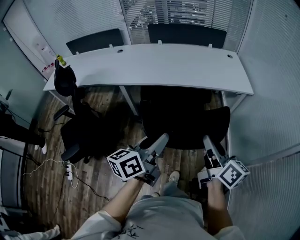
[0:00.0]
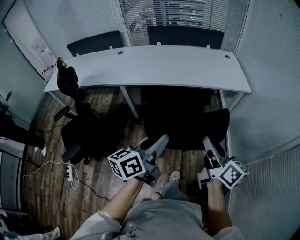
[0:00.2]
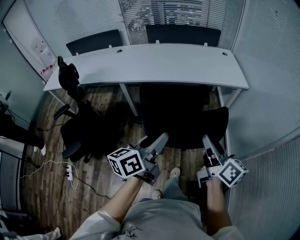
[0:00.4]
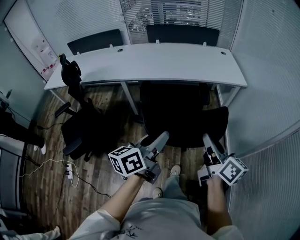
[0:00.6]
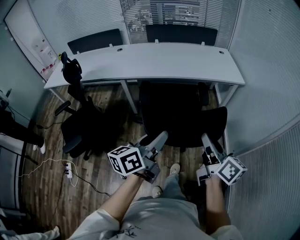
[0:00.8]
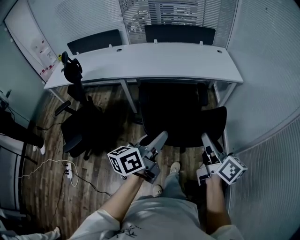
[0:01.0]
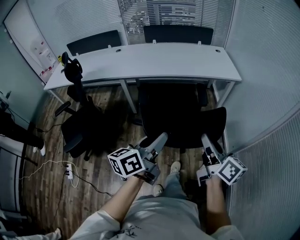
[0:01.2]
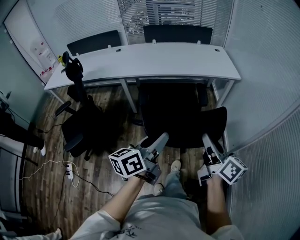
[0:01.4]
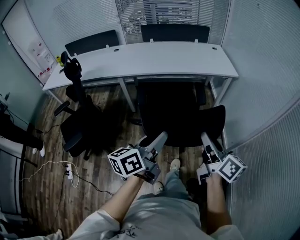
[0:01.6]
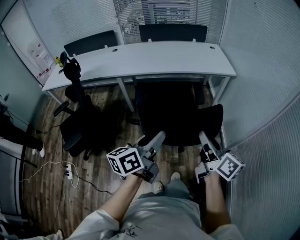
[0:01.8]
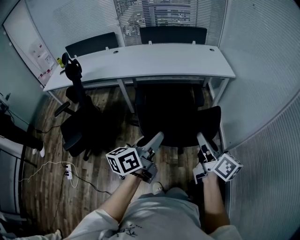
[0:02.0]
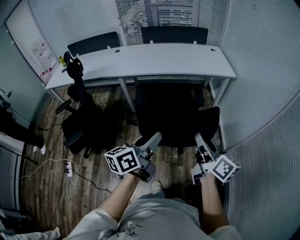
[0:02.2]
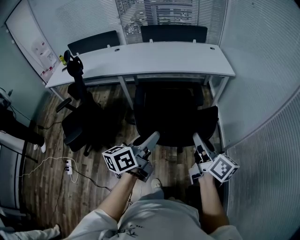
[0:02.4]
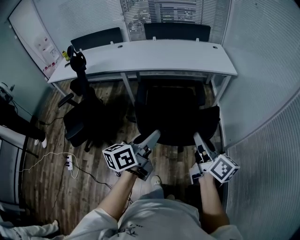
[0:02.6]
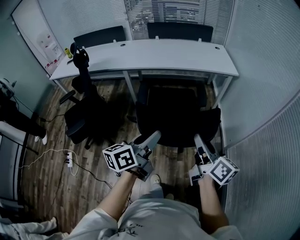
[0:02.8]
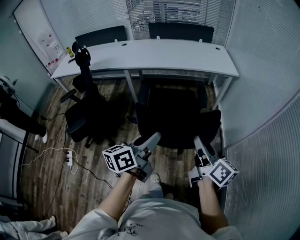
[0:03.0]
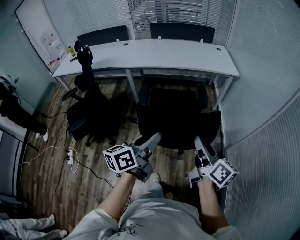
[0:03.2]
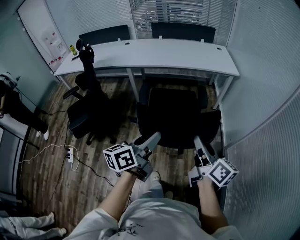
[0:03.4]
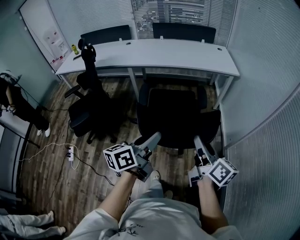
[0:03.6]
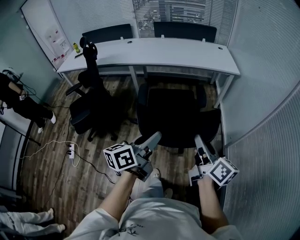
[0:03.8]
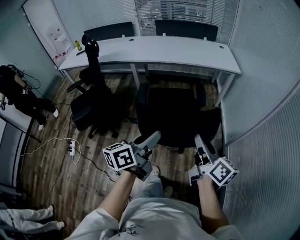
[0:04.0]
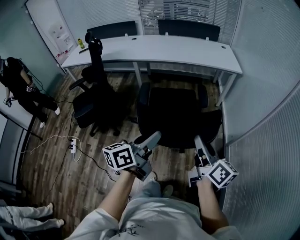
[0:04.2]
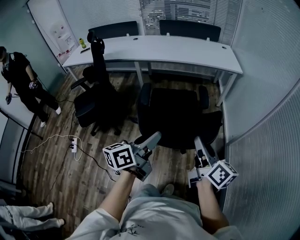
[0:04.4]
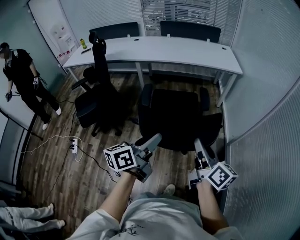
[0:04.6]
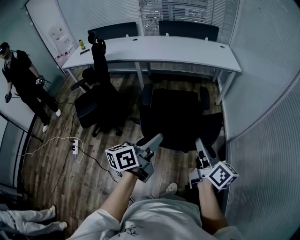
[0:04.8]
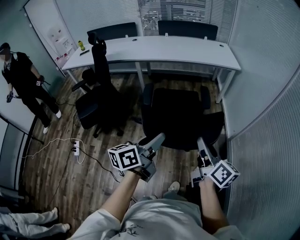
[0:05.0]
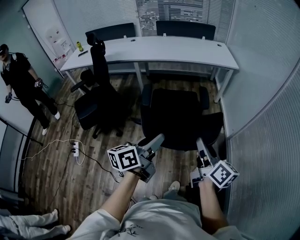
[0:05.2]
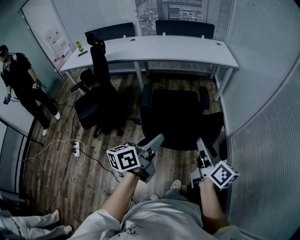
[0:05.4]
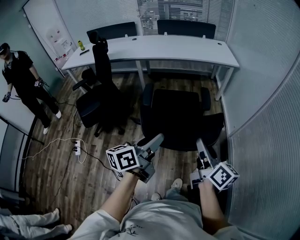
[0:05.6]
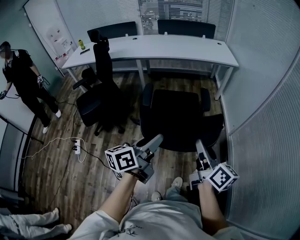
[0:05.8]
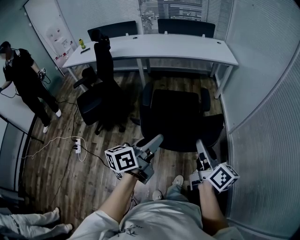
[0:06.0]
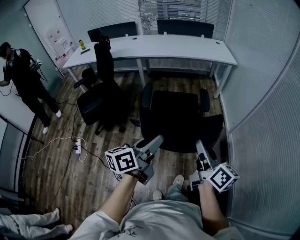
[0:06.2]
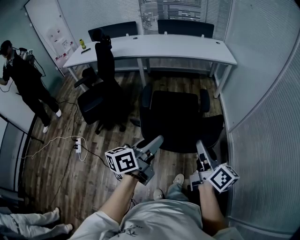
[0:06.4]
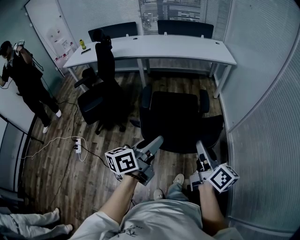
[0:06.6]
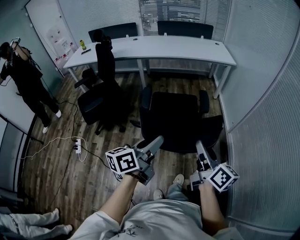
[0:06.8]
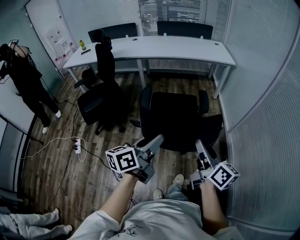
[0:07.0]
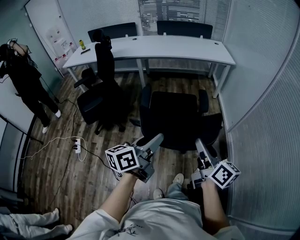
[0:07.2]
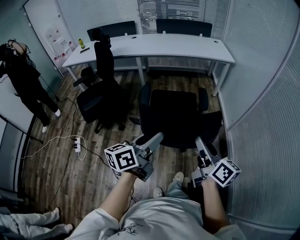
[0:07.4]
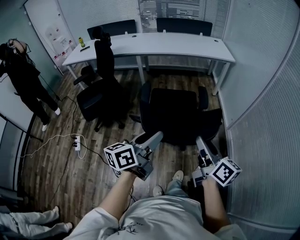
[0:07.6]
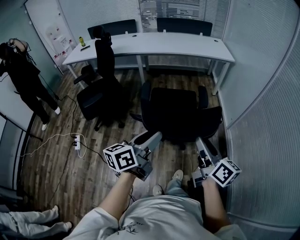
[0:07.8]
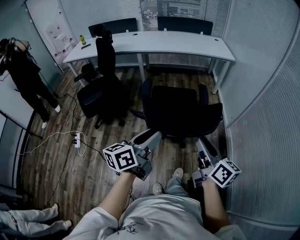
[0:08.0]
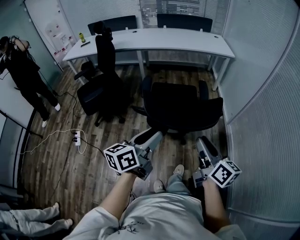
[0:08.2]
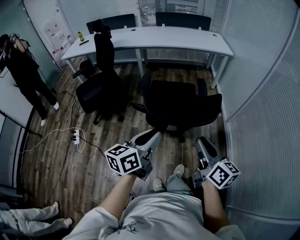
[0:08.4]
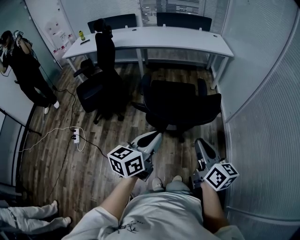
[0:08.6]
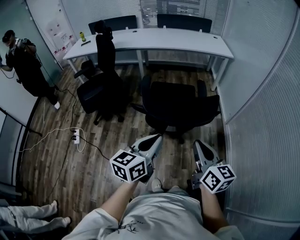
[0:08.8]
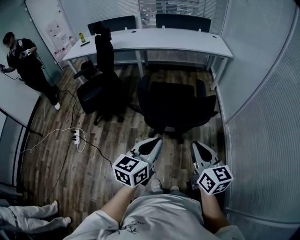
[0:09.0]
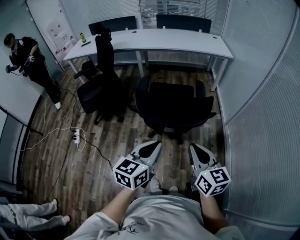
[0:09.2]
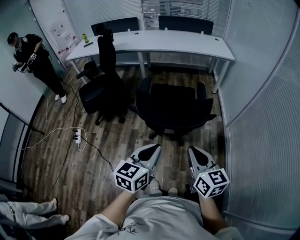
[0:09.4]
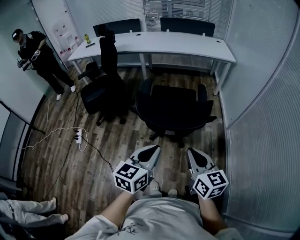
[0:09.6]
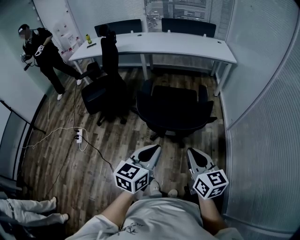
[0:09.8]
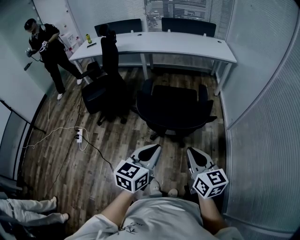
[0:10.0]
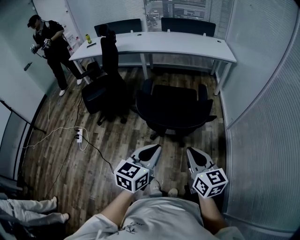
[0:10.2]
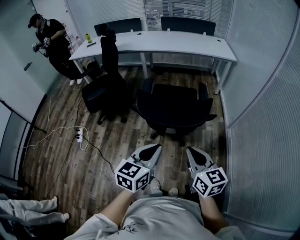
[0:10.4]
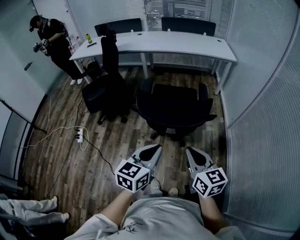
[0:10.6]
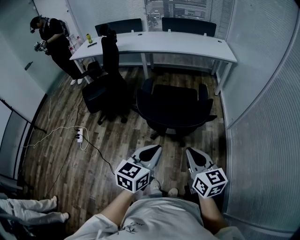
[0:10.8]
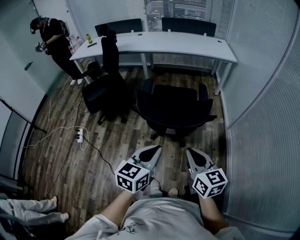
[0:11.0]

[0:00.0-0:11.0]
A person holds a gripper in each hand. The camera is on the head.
0:00.0 to 0:01.6: Both grippers travel together backward, some 20 cm.
0:01.6 to 0:03.2: The grippers both shift backward by roughly 10 cm.
0:03.2 to 0:04.8: Both grippers move backward, about 15 cm.
0:04.8 to 0:06.2: Both grippers travel together backward, some 10 cm.
0:06.2 to 0:07.8: Both grippers travel together backward, some 5 cm.
0:07.8 to 0:09.4: The left gripper shifts roughly 10 cm backward and to the right, swivels approximately 30 degrees, and closes its fingers, while the right gripper is displaced backward by approximately 10 cm, changes its angle by roughly 30 degrees, and closes.
0:09.4 to 0:11.0: The two grippers keep their place.

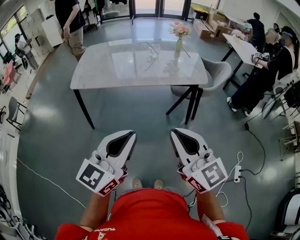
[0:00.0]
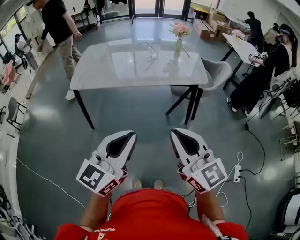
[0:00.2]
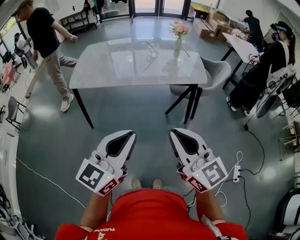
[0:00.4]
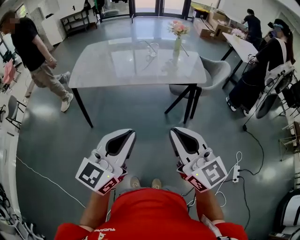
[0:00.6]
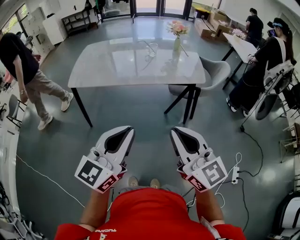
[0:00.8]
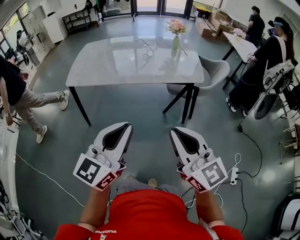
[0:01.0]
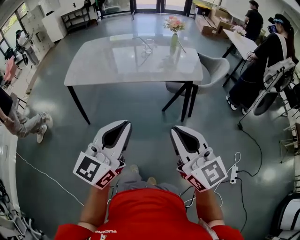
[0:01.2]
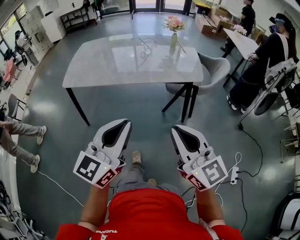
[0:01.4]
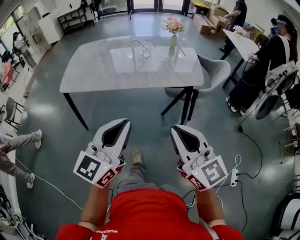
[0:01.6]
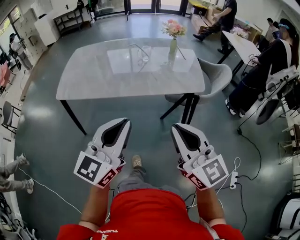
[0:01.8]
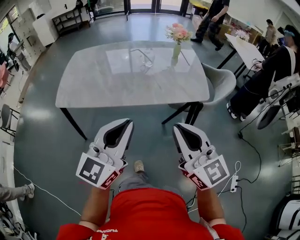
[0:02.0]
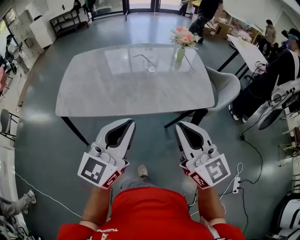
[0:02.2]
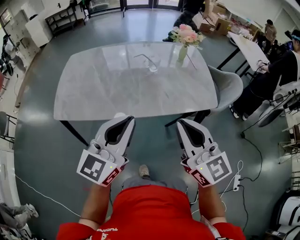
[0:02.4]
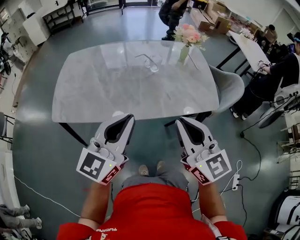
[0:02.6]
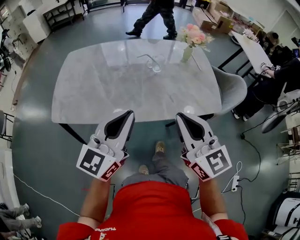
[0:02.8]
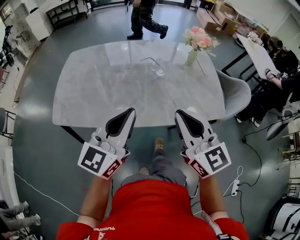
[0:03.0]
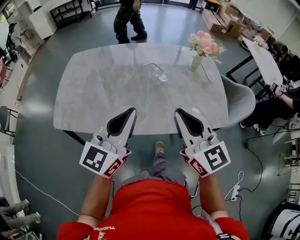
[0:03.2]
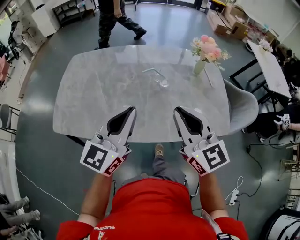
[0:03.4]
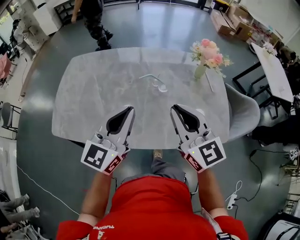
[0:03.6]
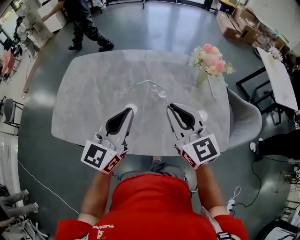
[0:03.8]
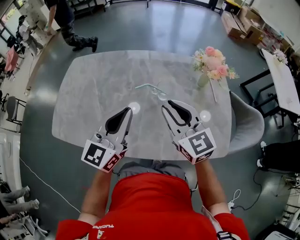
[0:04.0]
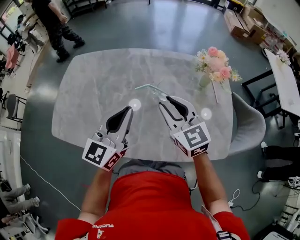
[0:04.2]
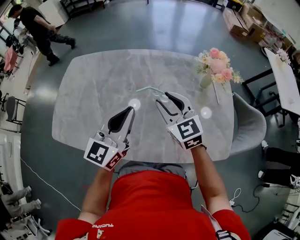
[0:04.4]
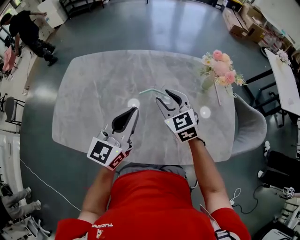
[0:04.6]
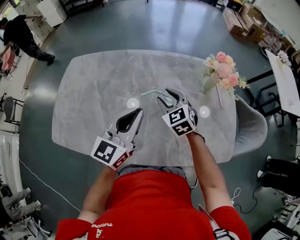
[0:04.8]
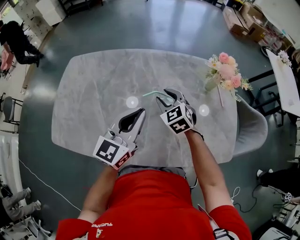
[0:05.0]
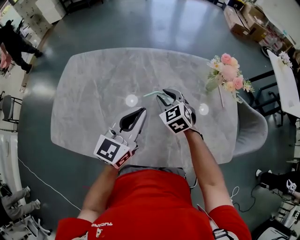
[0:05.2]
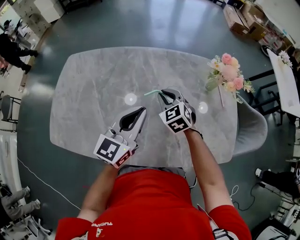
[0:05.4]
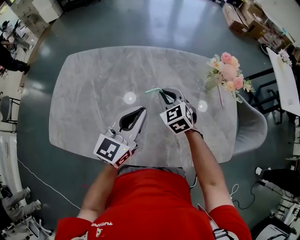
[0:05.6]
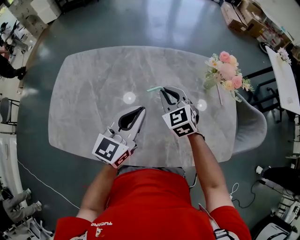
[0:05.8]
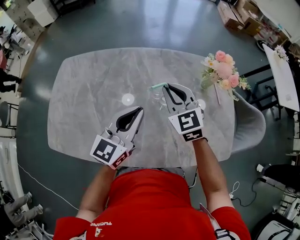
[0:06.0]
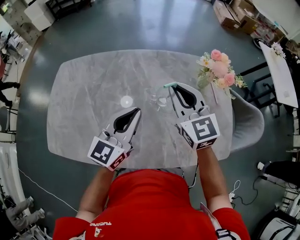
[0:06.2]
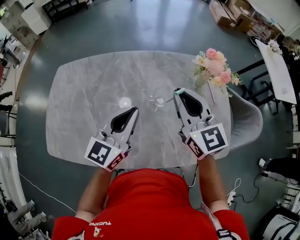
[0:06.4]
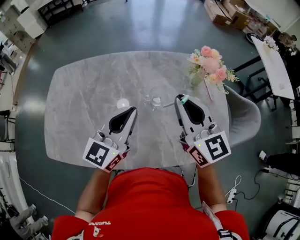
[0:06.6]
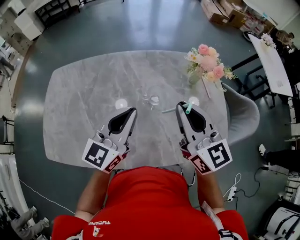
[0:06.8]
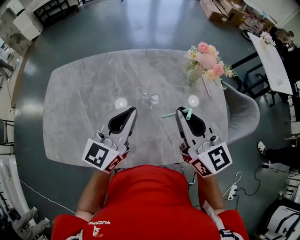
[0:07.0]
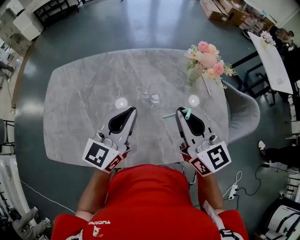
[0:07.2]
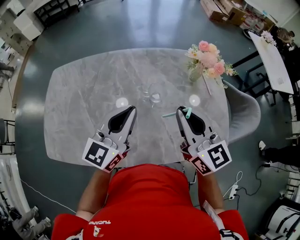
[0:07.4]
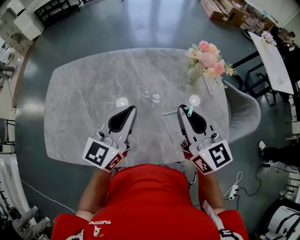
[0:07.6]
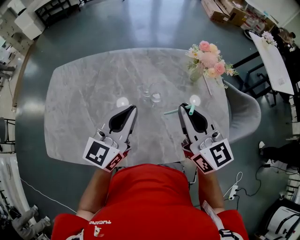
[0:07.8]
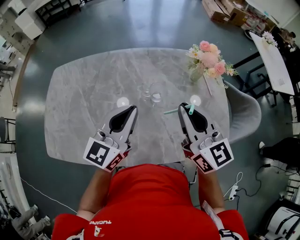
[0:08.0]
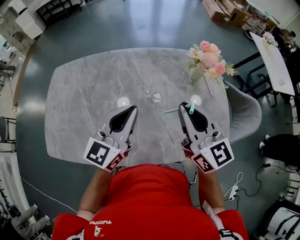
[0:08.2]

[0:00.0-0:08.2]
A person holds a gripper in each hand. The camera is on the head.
0:00.0 to 0:01.6: The two grippers go about 10 cm forward and to the right.
0:01.6 to 0:03.2: The grippers both shift forward by about 40 cm.
0:03.2 to 0:05.0: The left gripper shifts about 20 cm forward, while the right gripper heads forward and downward, covering approximately 40 cm, points its fingers approximately 30 degrees further downward, and opens.
0:05.0 to 0:06.6: The right gripper goes roughly 20 cm upward and to the right, tips its fingers upward by approximately 30 degrees, and closes up.
0:06.6 to 0:08.2: The grippers make only small movements.

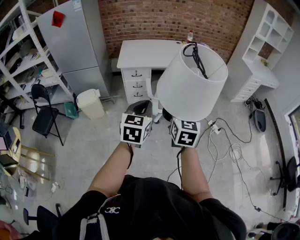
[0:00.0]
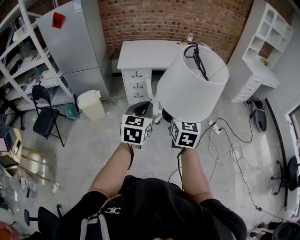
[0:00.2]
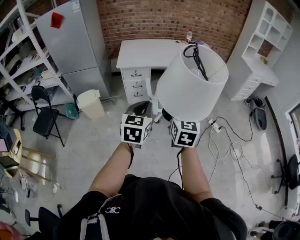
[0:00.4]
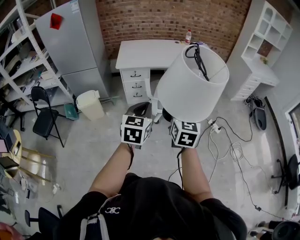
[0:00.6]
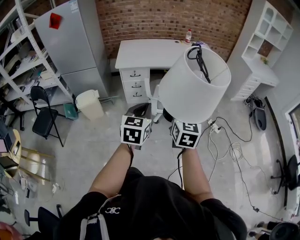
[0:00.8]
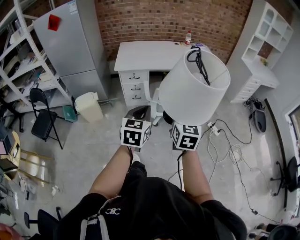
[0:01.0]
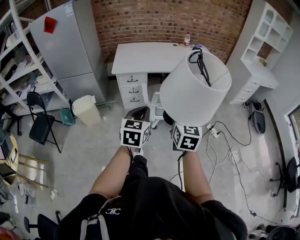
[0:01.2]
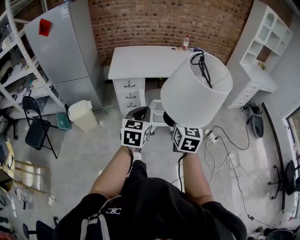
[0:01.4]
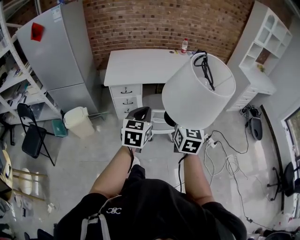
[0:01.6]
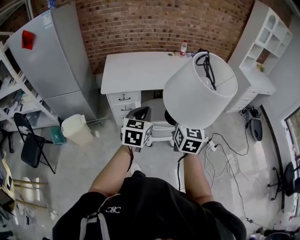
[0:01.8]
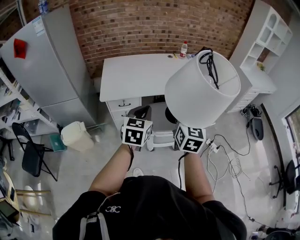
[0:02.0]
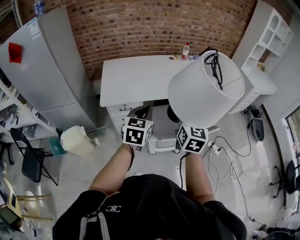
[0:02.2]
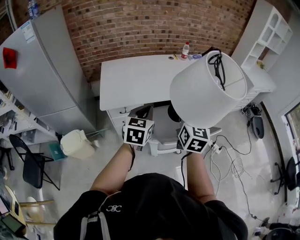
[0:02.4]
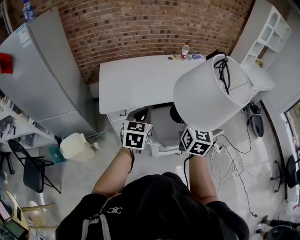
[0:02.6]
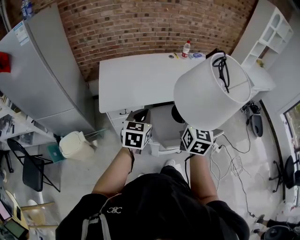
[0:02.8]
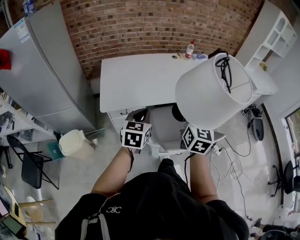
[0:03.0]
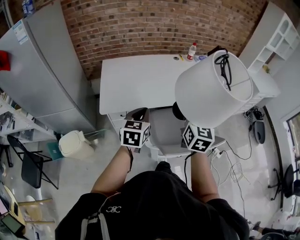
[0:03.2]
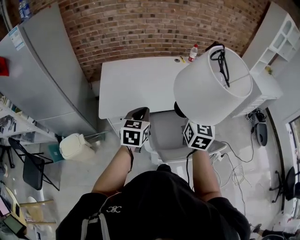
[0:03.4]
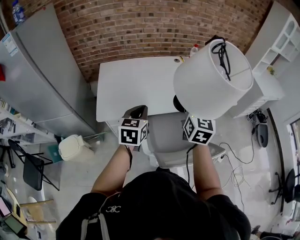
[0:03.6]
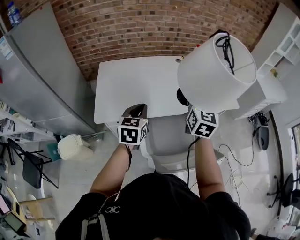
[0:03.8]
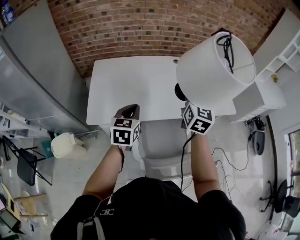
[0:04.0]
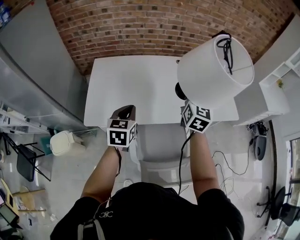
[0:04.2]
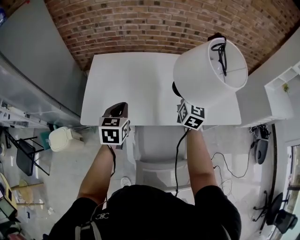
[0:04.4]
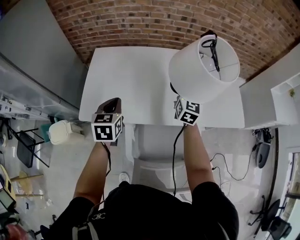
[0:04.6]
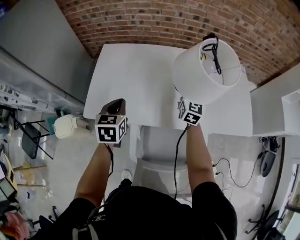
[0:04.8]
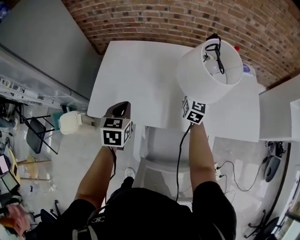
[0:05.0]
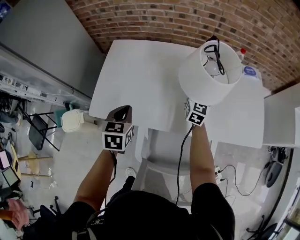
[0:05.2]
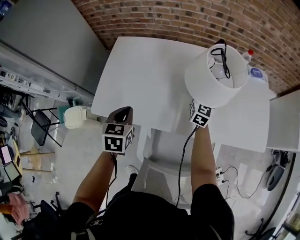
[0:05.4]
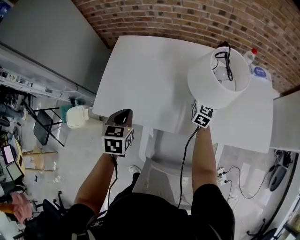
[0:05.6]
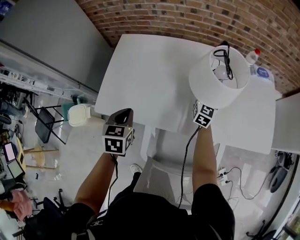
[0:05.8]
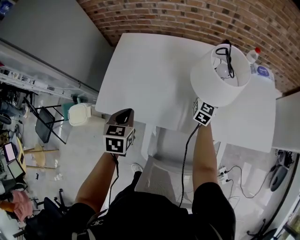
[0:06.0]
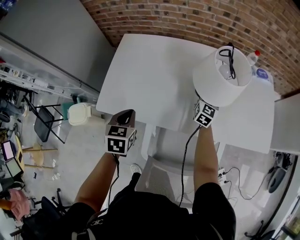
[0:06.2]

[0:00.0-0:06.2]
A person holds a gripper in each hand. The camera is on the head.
0:00.0 to 0:01.6: The two grippers go about 20 cm forward.
0:01.6 to 0:03.2: The right gripper moves forward, some 30 cm, while the left gripper moves forward and to the left, about 30 cm.
0:03.2 to 0:04.6: The left gripper goes approximately 20 cm forward, and turns by some 20 degrees. The right gripper moves forward, roughly 40 cm.
0:04.6 to 0:06.2: The left gripper is displaced downward by approximately 10 cm. Meanwhile the right gripper heads downward and forward, covering roughly 20 cm.
